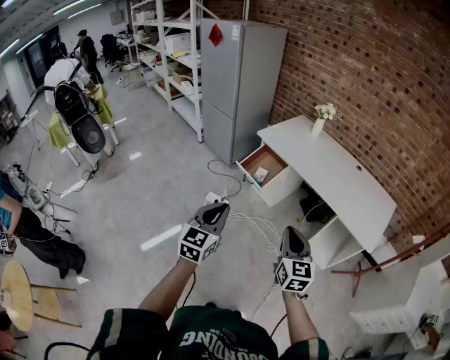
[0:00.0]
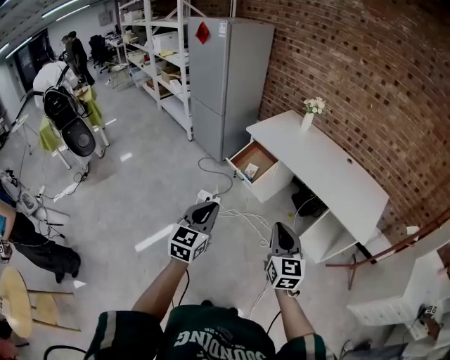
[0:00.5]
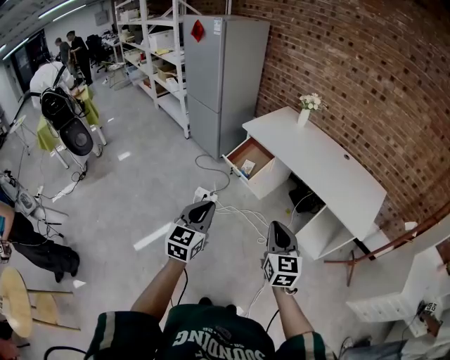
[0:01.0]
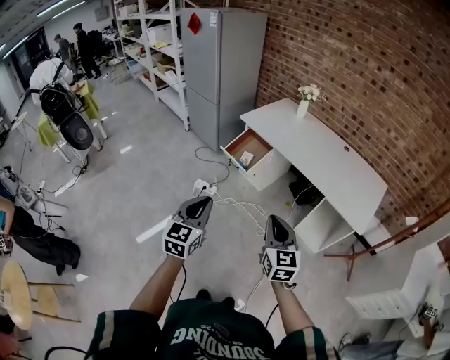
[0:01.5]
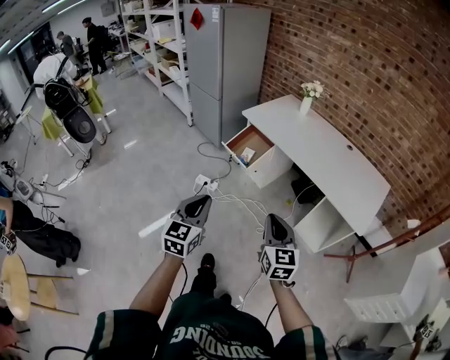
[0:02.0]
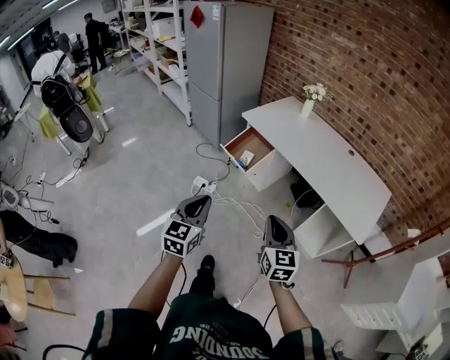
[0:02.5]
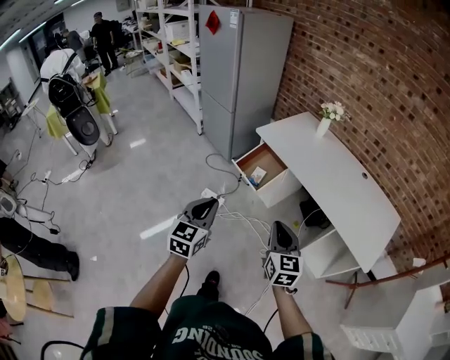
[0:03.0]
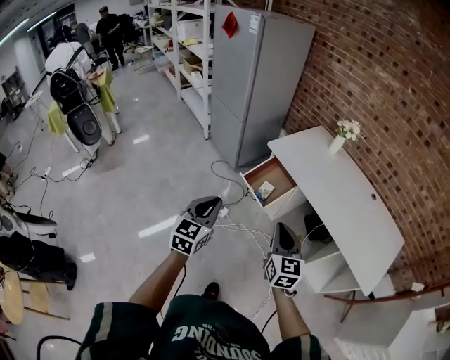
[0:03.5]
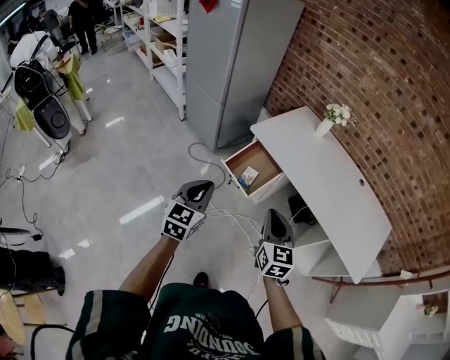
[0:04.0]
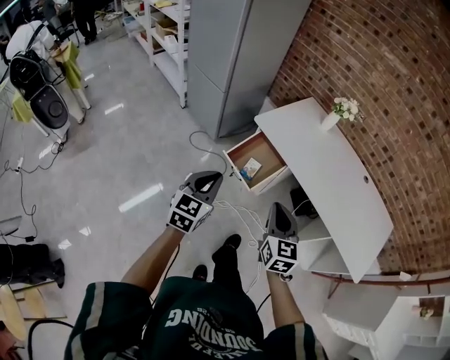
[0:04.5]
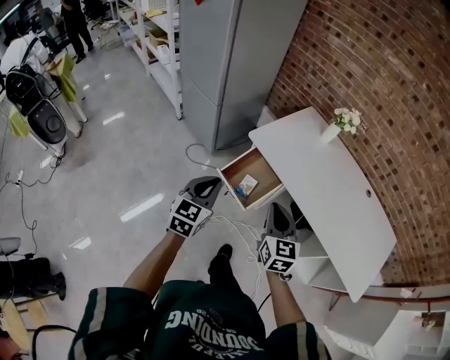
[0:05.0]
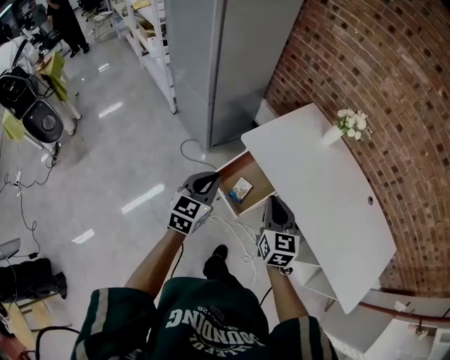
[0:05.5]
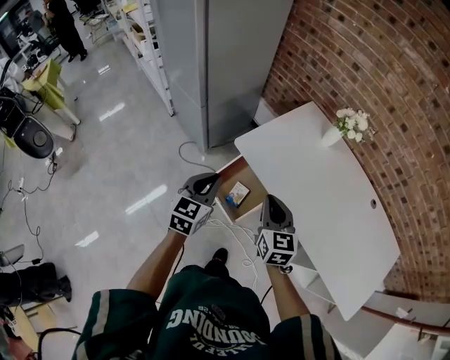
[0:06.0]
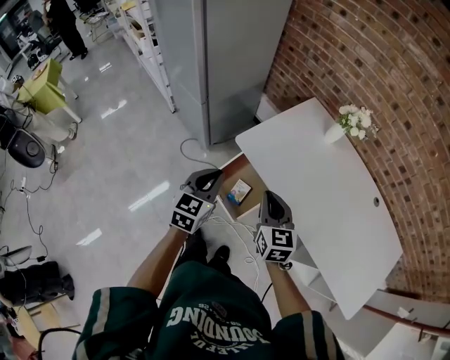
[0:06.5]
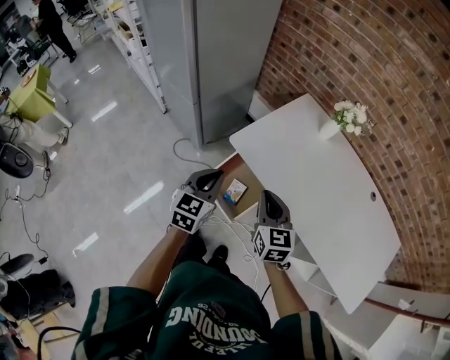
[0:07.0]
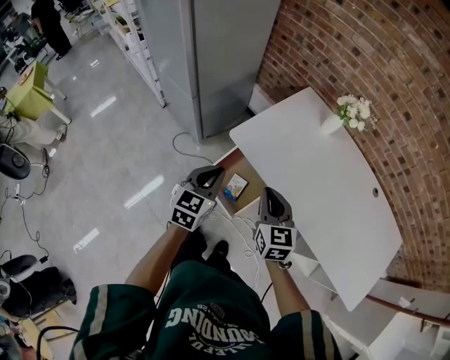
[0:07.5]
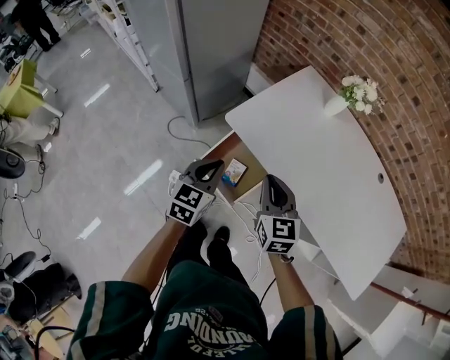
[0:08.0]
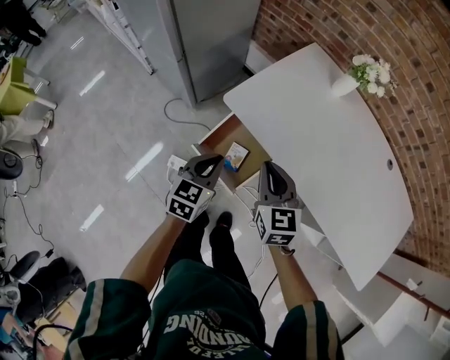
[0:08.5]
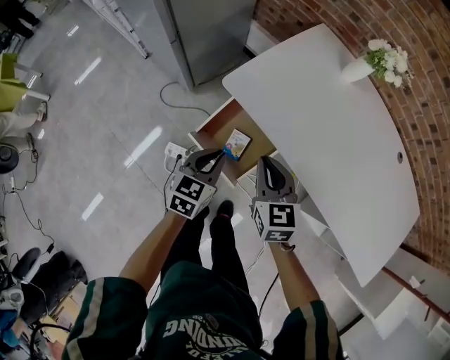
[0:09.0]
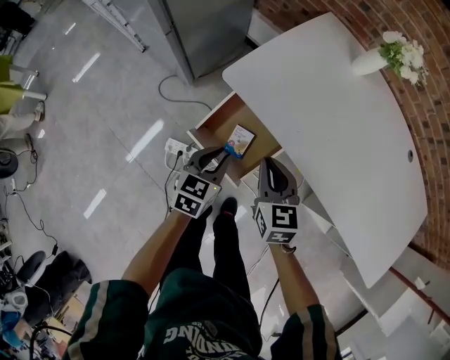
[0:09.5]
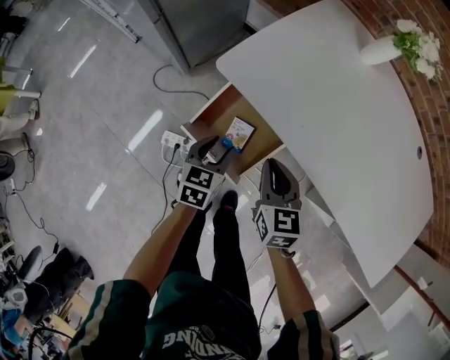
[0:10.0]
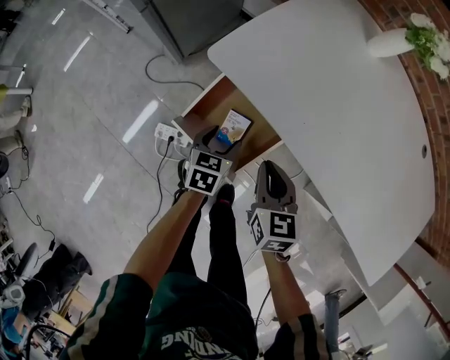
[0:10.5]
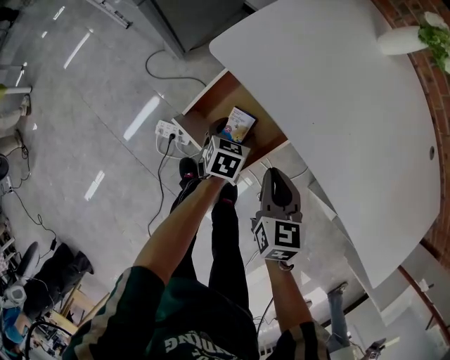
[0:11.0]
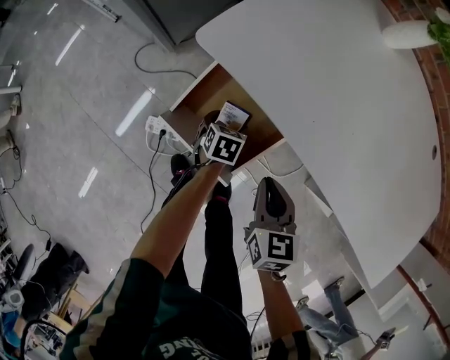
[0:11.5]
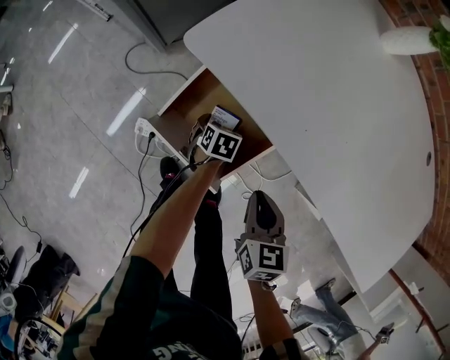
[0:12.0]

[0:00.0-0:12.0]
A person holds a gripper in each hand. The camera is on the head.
0:00.0 to 0:02.0: The left gripper moves to the right, approximately 5 cm.
0:02.0 to 0:04.0: The left gripper travels forward by some 30 cm; the right gripper heads forward and to the left, covering about 30 cm.
0:04.0 to 0:06.0: Both grippers move forward, roughly 30 cm.
0:06.0 to 0:08.0: The left gripper moves downward, some 5 cm.
0:08.0 to 0:10.0: Both grippers move downward, about 20 cm. The left gripper opens its fingers.
0:10.0 to 0:12.0: The left gripper shifts roughly 25 cm downward, swivels approximately 30 degrees, and opens up, while the right gripper is displaced downward, backward and to the right by approximately 10 cm.

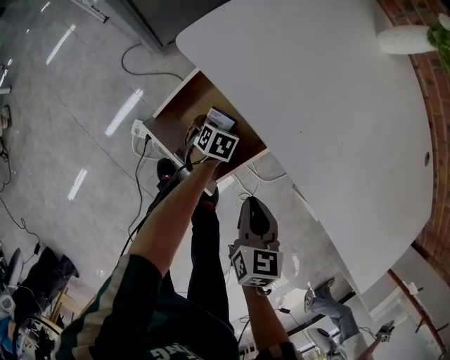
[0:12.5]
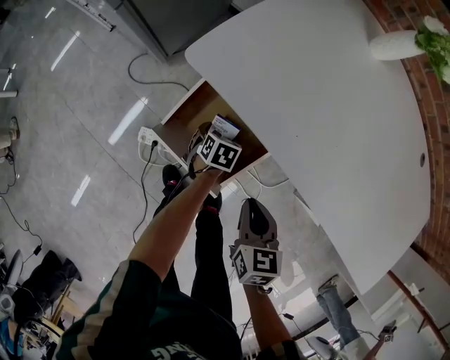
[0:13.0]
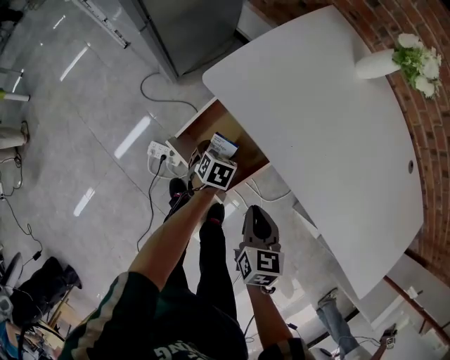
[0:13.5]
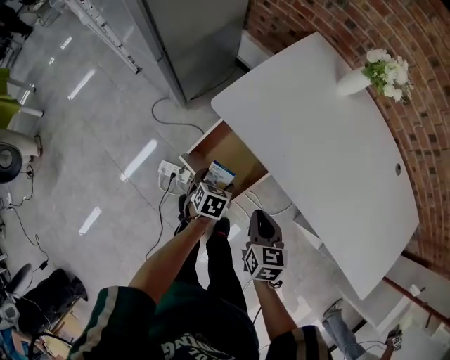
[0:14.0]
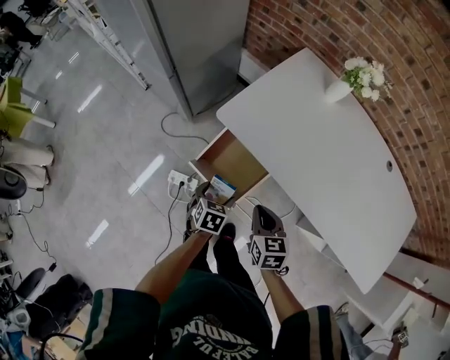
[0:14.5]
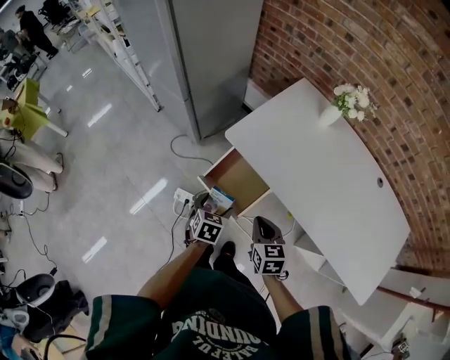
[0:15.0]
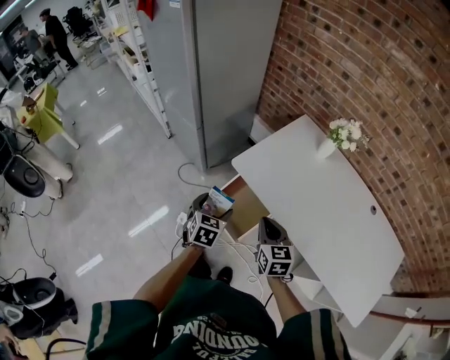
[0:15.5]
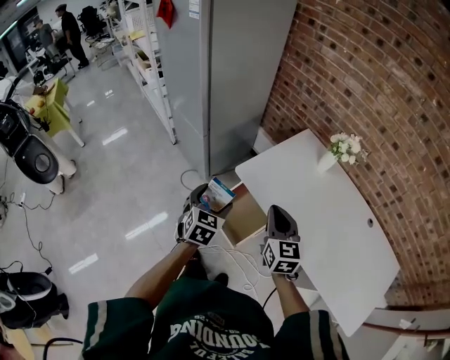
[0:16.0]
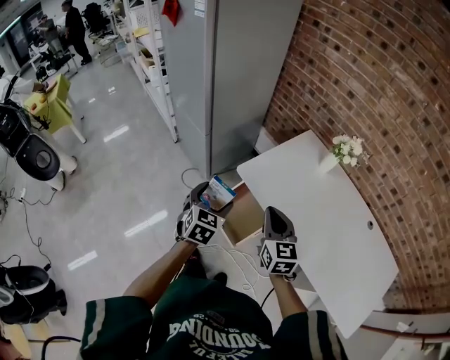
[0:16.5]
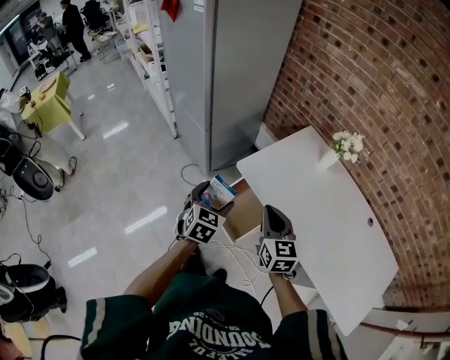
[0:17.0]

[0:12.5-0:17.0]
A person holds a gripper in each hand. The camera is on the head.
0:12.5 to 0:14.5: The right gripper shifts about 15 cm upward. Meanwhile the left gripper travels upward and backward by some 30 cm.
0:14.5 to 0:17.0: Both grippers move upward, roughly 25 cm. The right gripper changes its angle by about 30 degrees. The left gripper changes its angle by some 30 degrees.

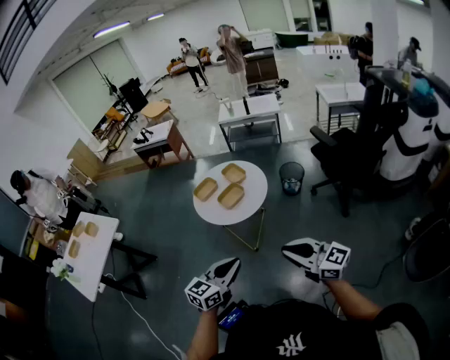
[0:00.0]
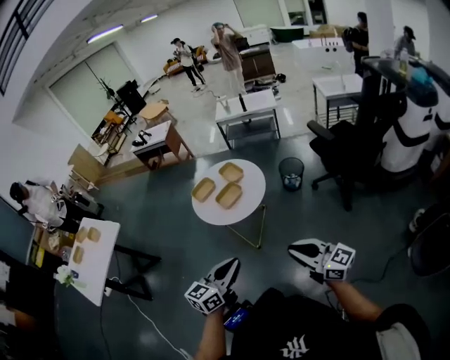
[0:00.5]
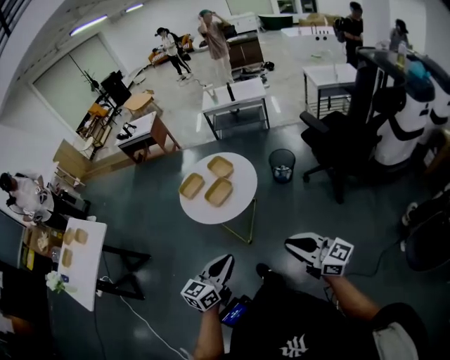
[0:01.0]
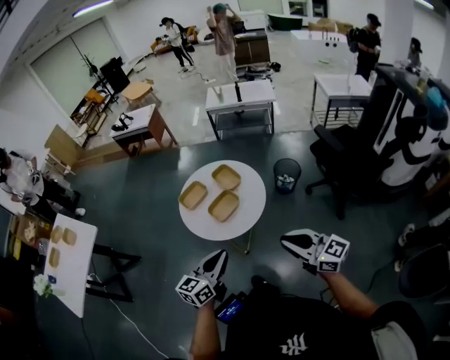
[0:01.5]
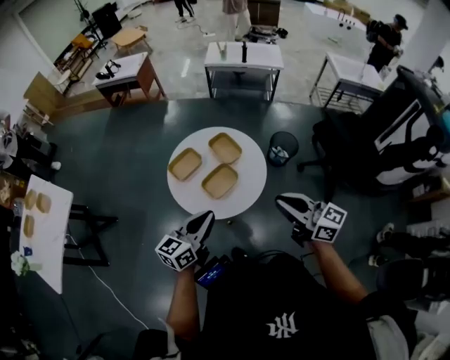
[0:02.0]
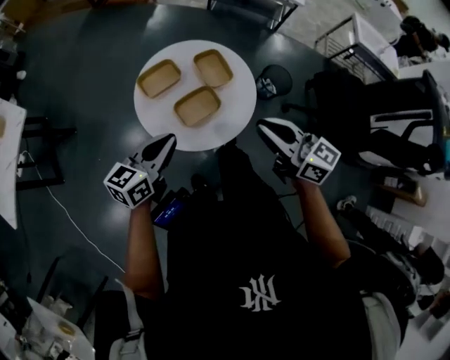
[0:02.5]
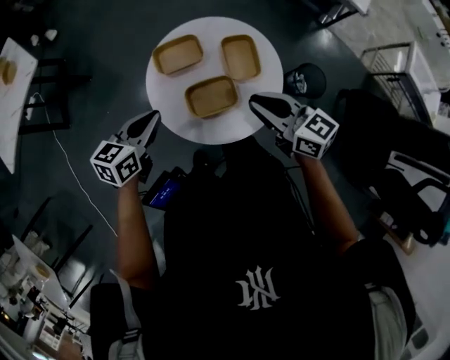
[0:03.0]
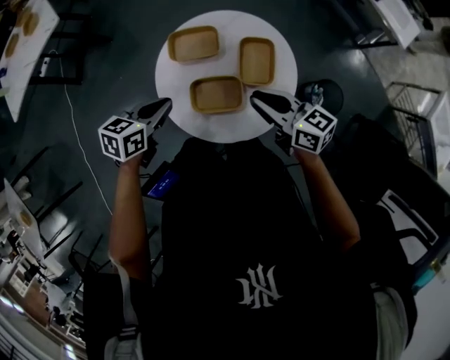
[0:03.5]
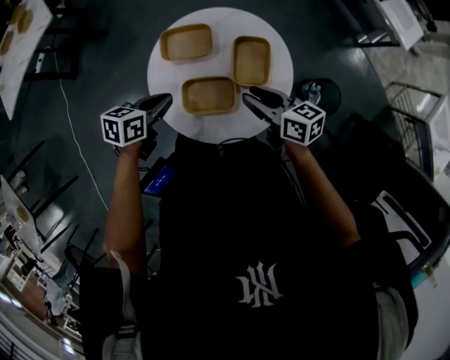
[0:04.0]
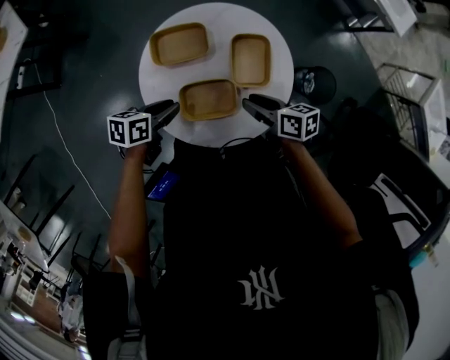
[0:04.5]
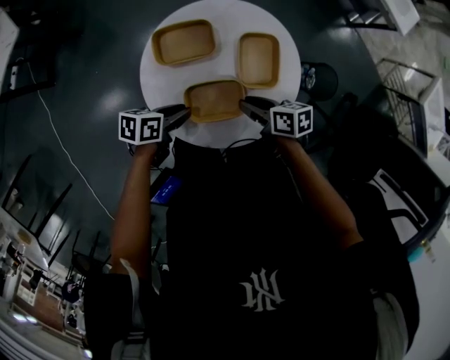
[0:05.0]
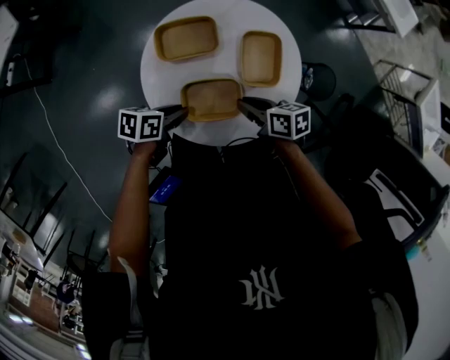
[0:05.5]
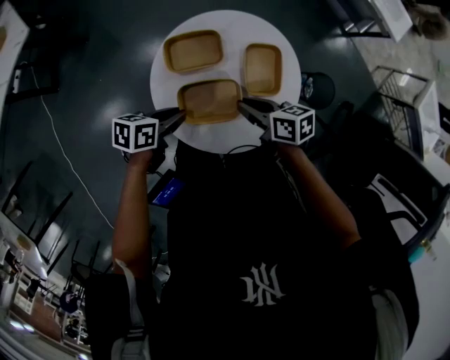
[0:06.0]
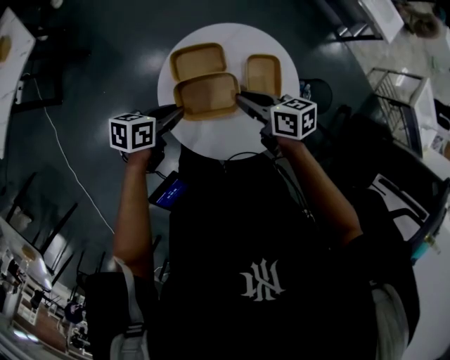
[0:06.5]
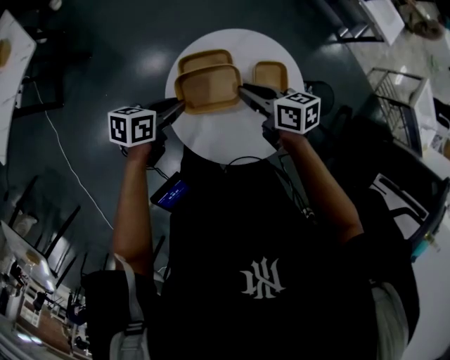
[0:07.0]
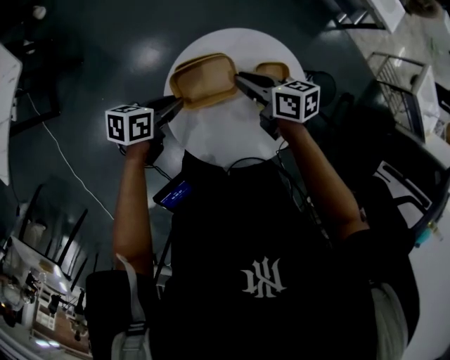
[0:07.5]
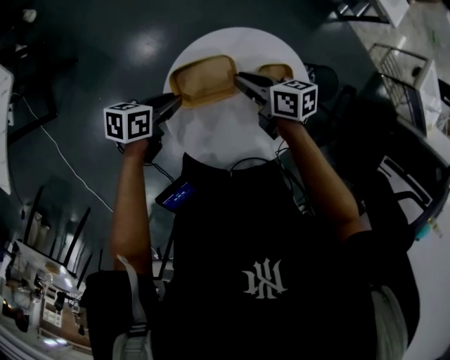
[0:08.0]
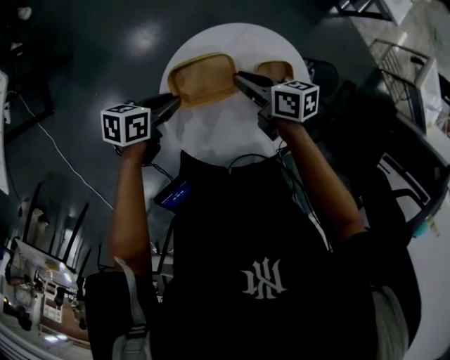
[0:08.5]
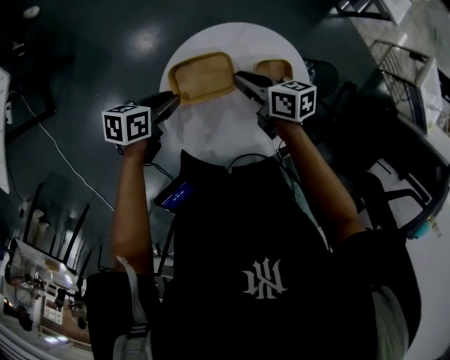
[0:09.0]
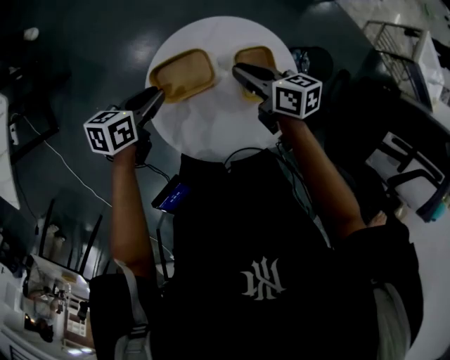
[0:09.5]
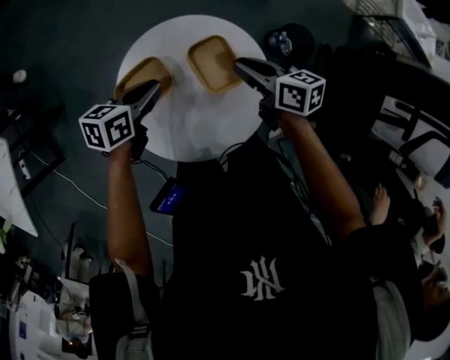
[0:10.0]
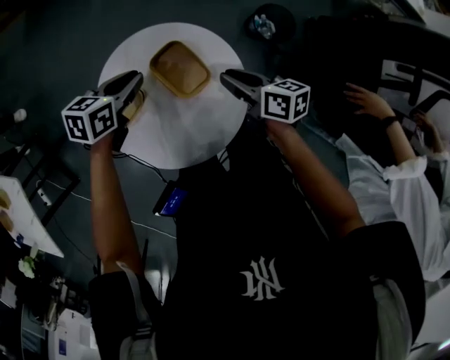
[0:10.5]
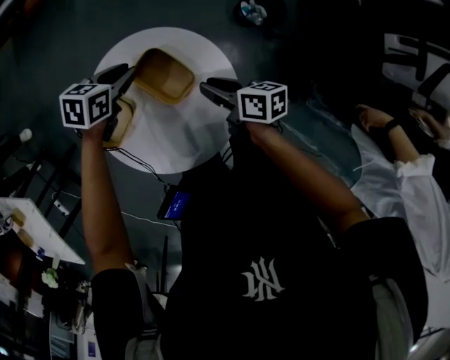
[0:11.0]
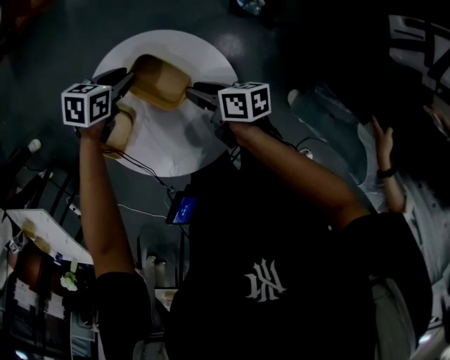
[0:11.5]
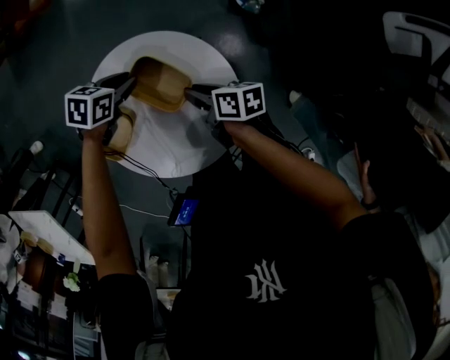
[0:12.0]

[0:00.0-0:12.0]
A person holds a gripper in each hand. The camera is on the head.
0:00.0 to 0:02.0: The grippers both shift forward by some 30 cm.
0:02.0 to 0:04.0: The left gripper heads downward, covering approximately 15 cm, and points its fingers approximately 40 degrees further downward; the right gripper shifts by about 30 cm, rotates about 50 degrees, and opens up.
0:06.0 to 0:08.0: The left gripper ends up about 15 cm from where it was. The right gripper ends up some 15 cm from where it was.
0:08.0 to 0:10.0: The left gripper changes place by approximately 10 cm, while the right gripper shifts by about 15 cm, and changes its angle by some 20 degrees.
0:10.0 to 0:12.0: The right gripper moves downward, about 10 cm, and swivels approximately 30 degrees. Meanwhile the left gripper changes place by about 15 cm, and swivels roughly 40 degrees.
